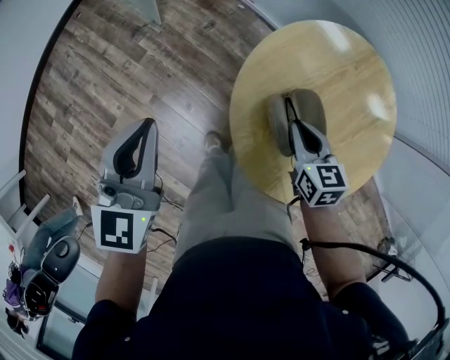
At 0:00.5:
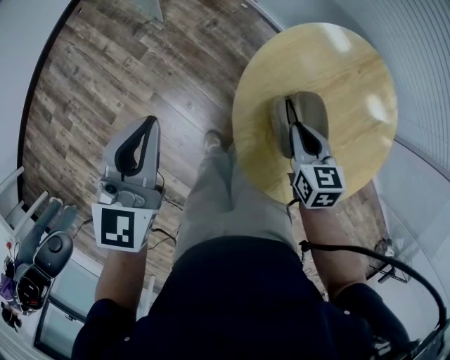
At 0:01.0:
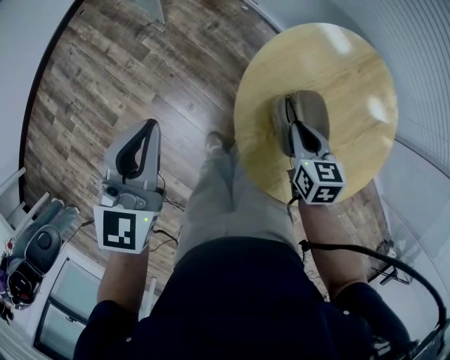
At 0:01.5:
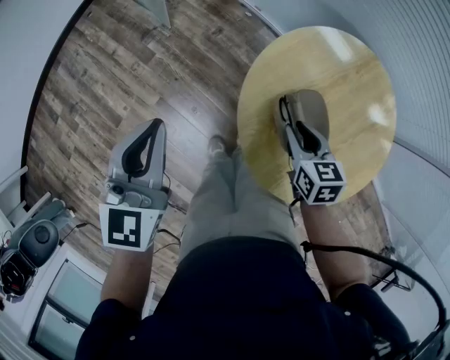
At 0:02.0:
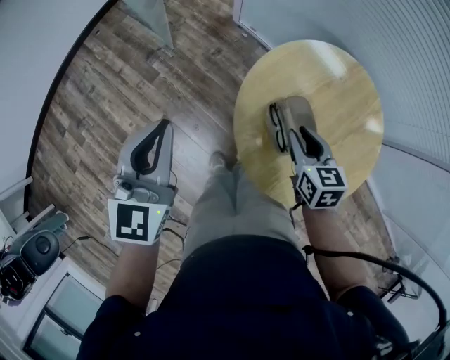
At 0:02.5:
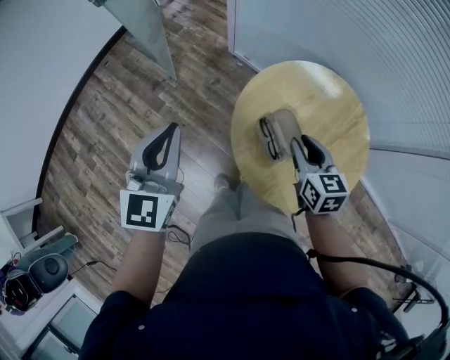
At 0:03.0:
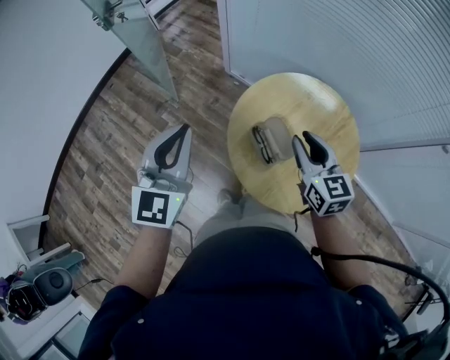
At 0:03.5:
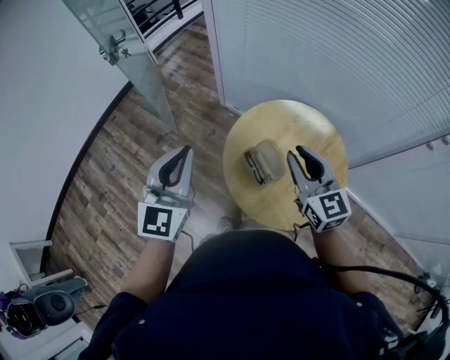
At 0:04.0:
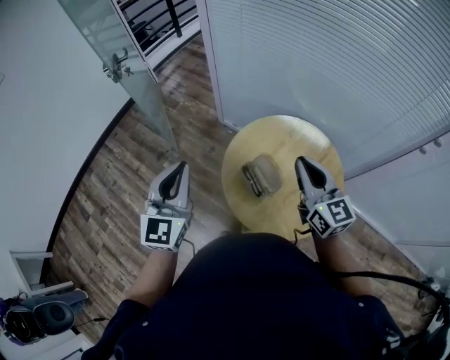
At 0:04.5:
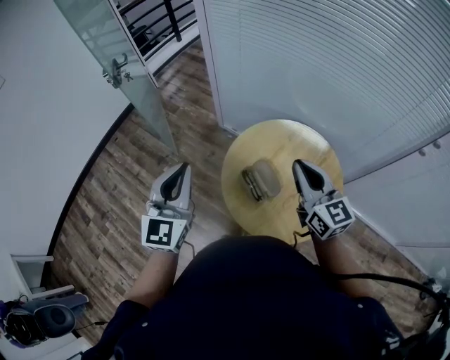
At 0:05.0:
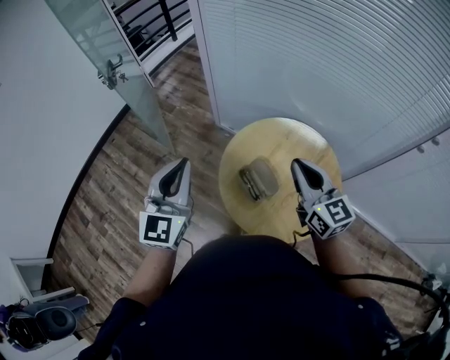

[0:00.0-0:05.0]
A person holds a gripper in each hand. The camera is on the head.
0:00.0 to 0:02.5: Both grippers move upward, approximately 15 cm. The right gripper opens.
0:02.5 to 0:05.0: The left gripper is displaced upward and to the right by about 15 cm; the right gripper goes about 20 cm upward, changes its angle by roughly 30 degrees, and closes.

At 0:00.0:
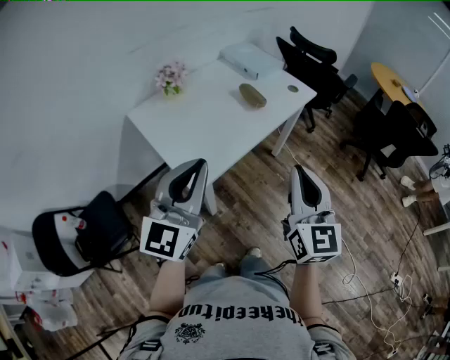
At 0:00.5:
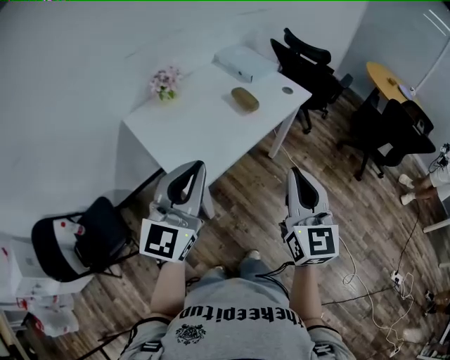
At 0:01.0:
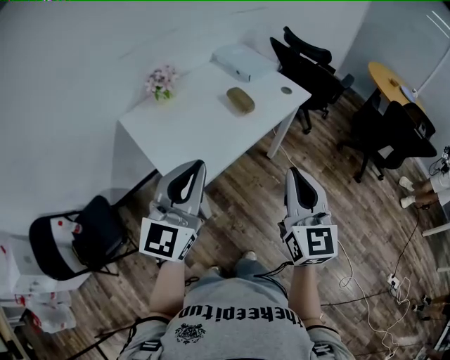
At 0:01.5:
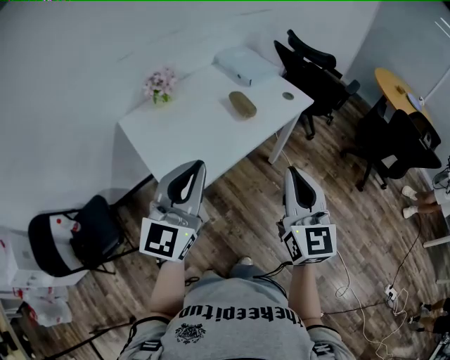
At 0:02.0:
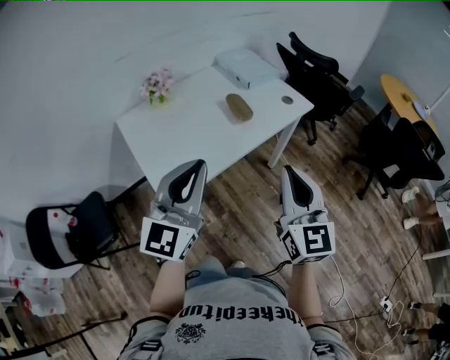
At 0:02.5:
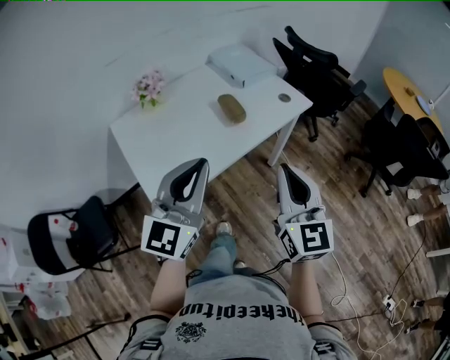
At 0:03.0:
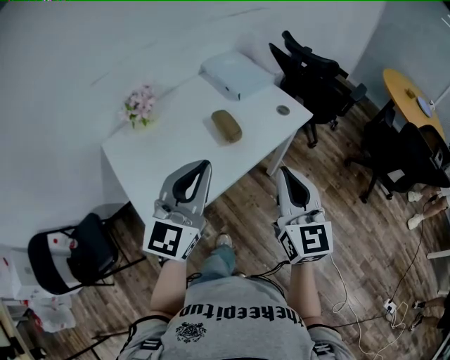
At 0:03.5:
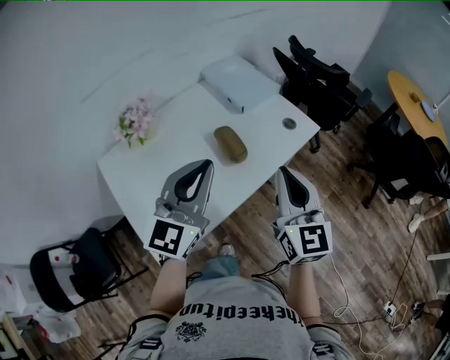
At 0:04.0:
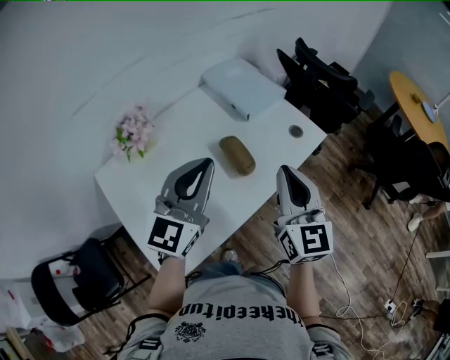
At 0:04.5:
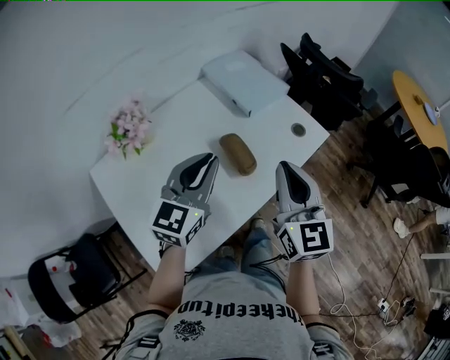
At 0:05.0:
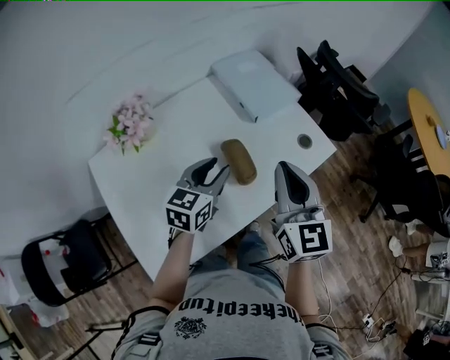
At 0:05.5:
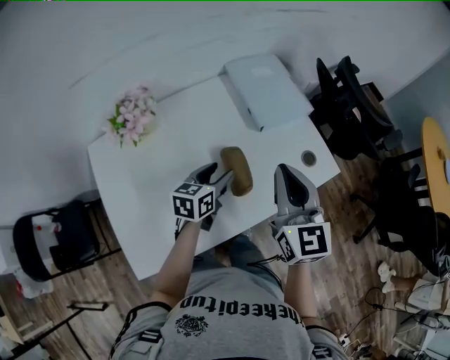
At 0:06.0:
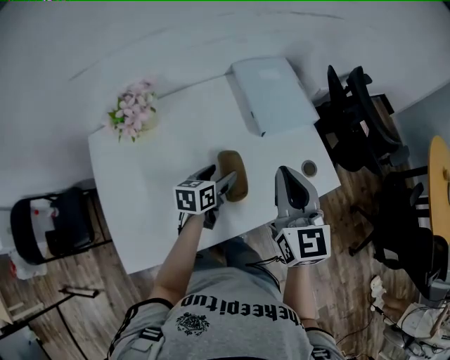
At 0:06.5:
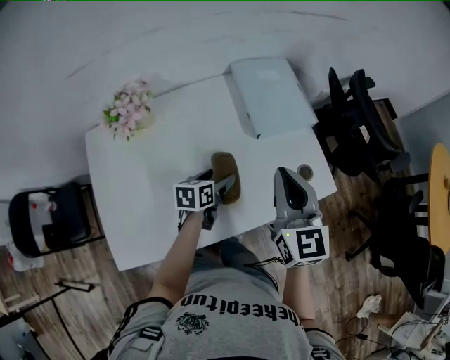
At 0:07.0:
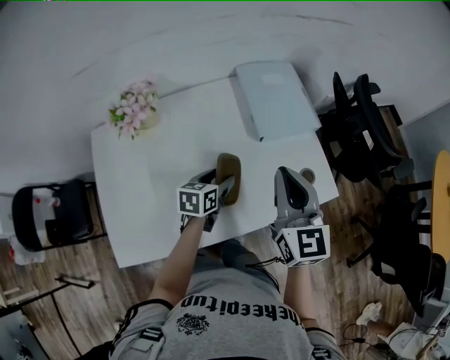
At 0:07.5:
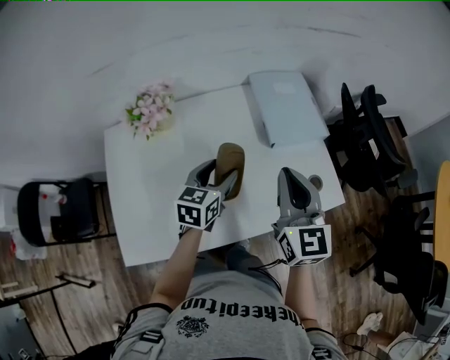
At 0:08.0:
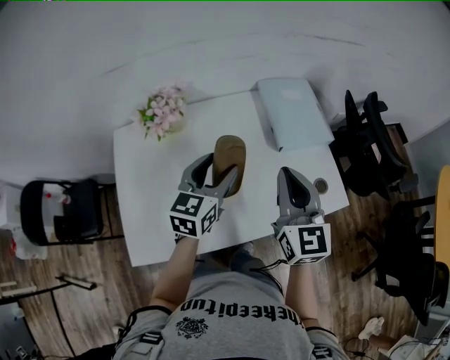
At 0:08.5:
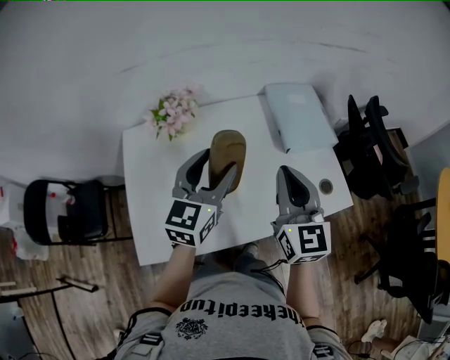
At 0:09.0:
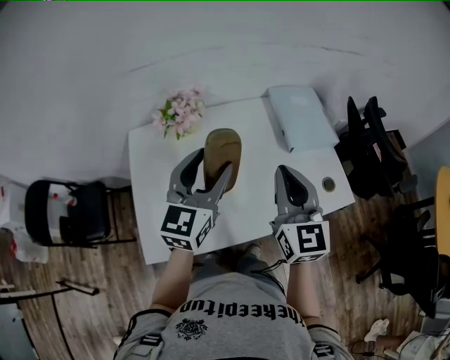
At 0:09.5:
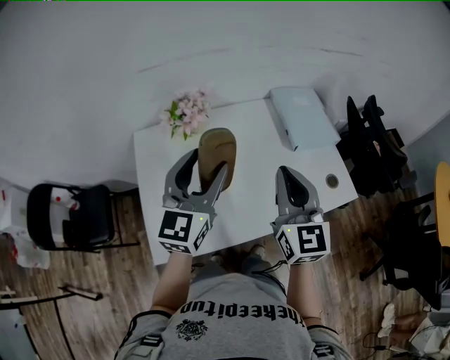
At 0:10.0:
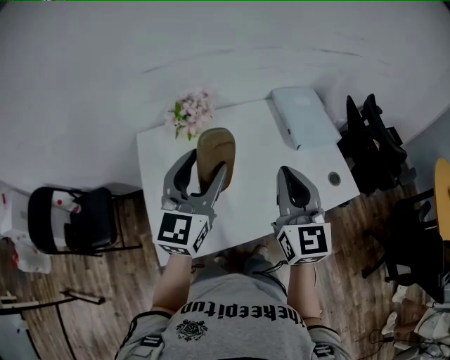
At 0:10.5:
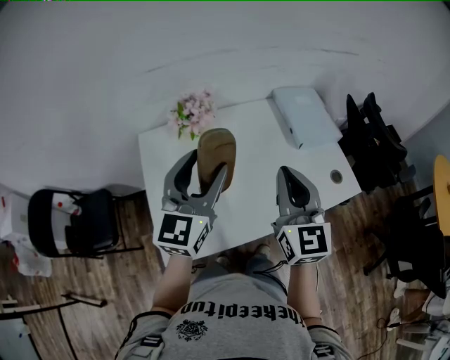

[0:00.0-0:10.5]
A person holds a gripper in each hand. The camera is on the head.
0:00.0 to 0:02.0: The right gripper goes approximately 10 cm forward and to the right, while the left gripper is displaced to the right and forward by approximately 15 cm.
0:02.0 to 0:04.0: The two grippers go roughly 30 cm forward.
0:04.0 to 0:06.5: The right gripper moves forward, some 15 cm, and turns by roughly 20 degrees, while the left gripper shifts approximately 35 cm downward and forward, angles its fingers downward, by approximately 40 degrees, and opens.
0:06.5 to 0:08.5: The left gripper travels upward by some 25 cm, and turns by some 50 degrees; the right gripper is displaced to the left by about 10 cm.
0:08.5 to 0:10.5: The grippers both shift to the left and backward by approximately 10 cm.

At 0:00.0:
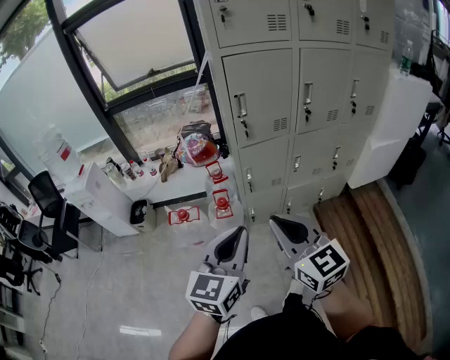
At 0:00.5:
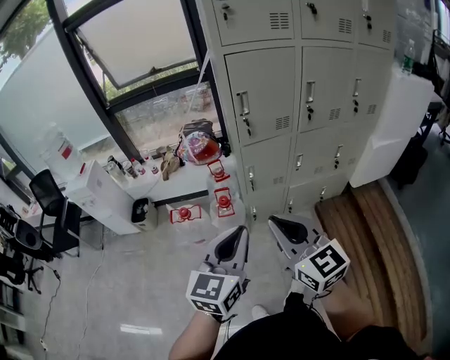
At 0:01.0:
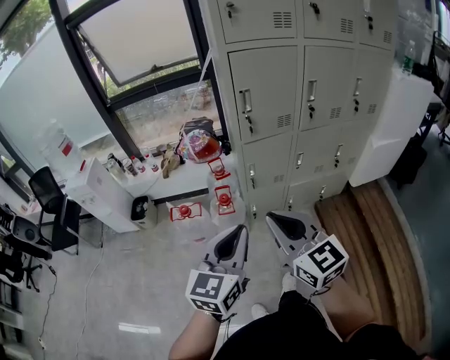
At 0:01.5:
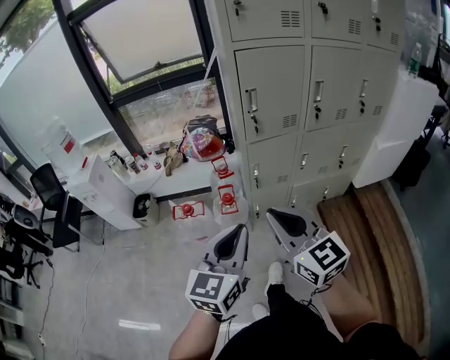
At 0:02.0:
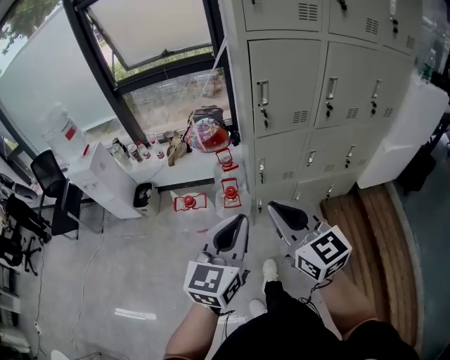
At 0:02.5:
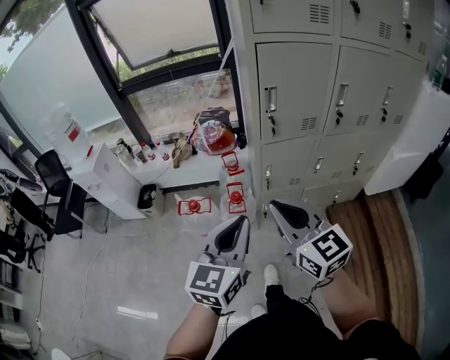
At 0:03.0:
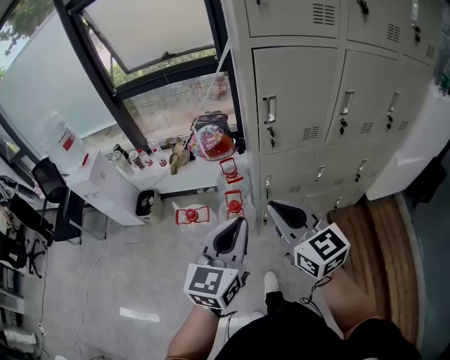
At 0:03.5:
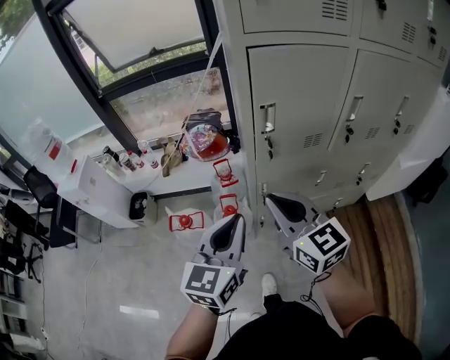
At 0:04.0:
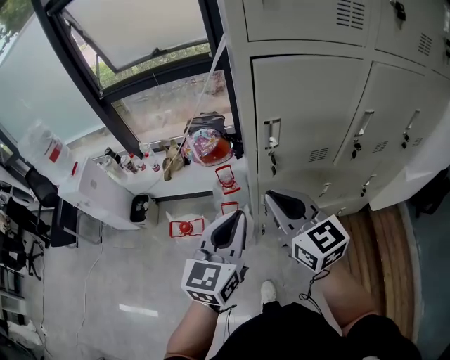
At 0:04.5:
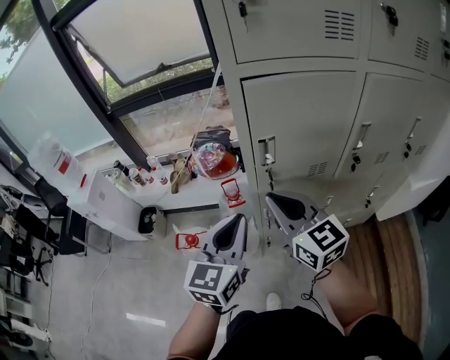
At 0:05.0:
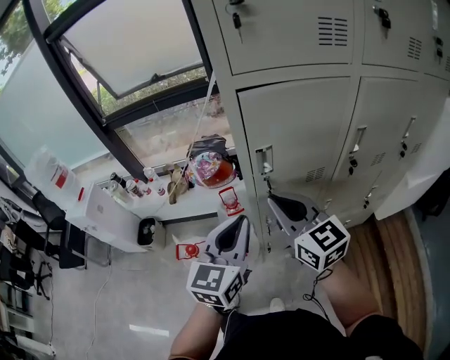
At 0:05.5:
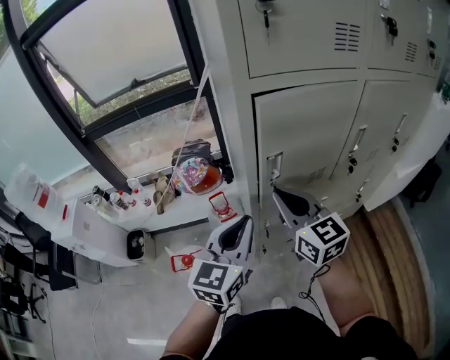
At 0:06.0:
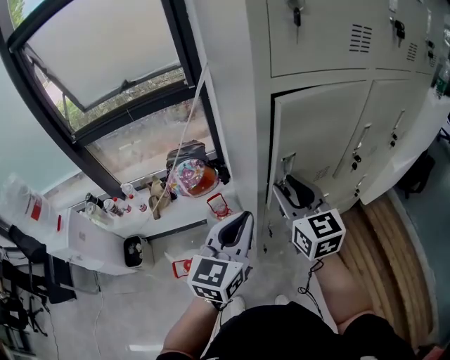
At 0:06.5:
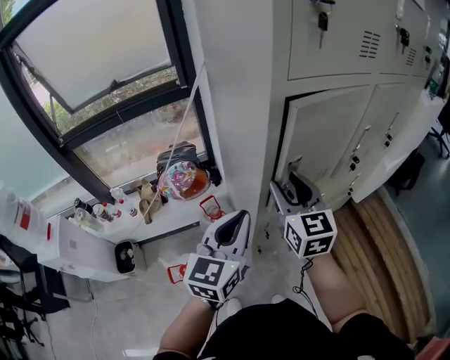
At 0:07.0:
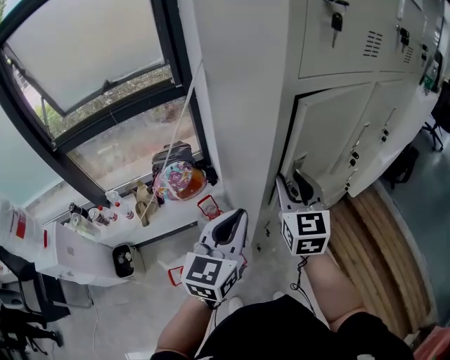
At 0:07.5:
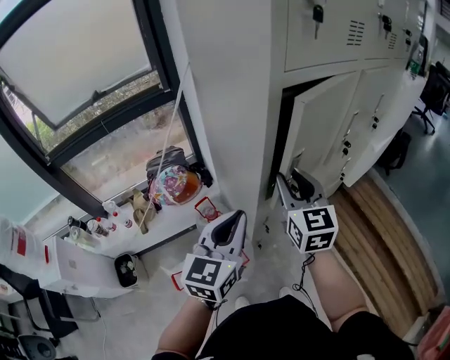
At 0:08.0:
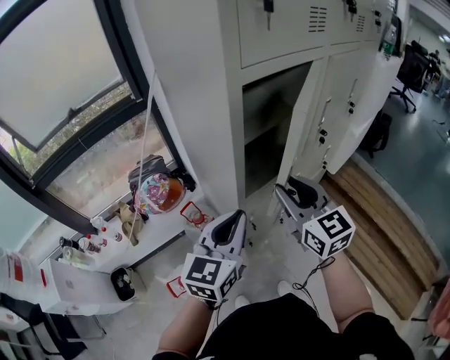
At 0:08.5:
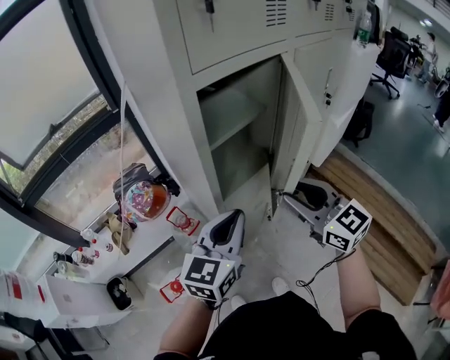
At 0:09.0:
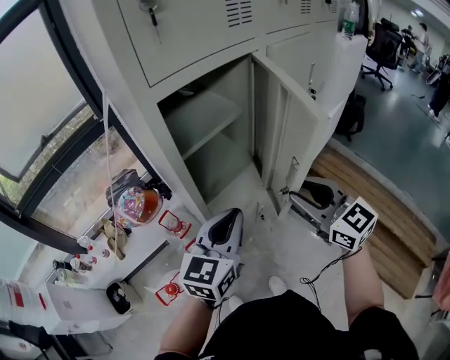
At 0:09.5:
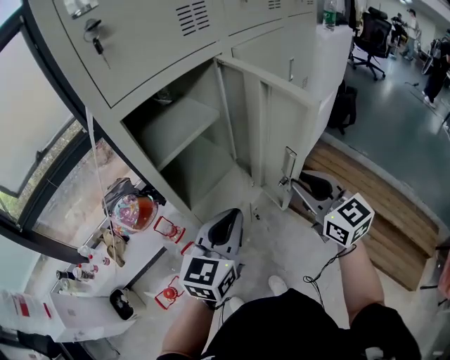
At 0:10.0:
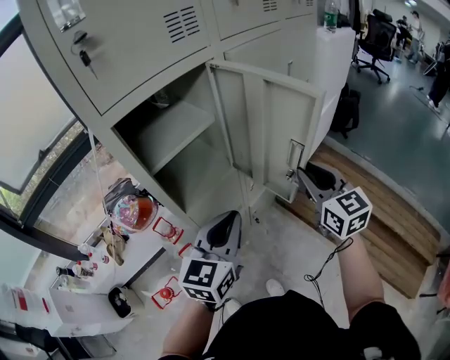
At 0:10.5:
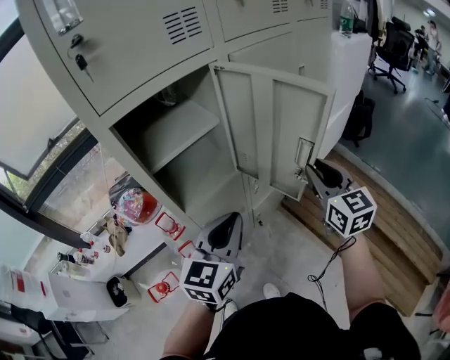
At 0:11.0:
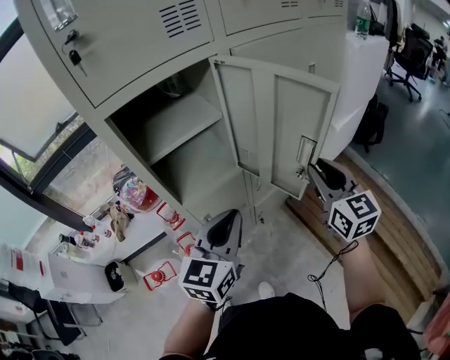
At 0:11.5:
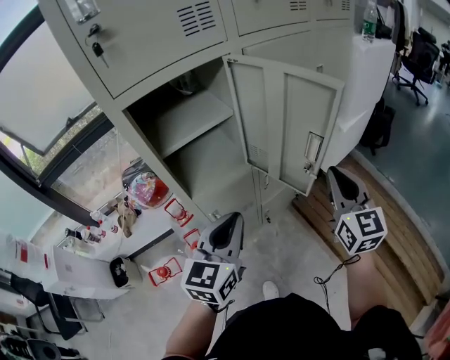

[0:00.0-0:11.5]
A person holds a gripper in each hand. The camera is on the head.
0:00.0 to 0:02.0: The right gripper moves about 5 cm.
0:02.0 to 0:04.0: The two grippers go approximately 25 cm forward.
0:04.0 to 0:06.0: The two grippers go some 10 cm forward. The right gripper swivels roughly 30 degrees, and opens its fingers.
0:06.0 to 0:07.5: The right gripper swivels some 20 degrees.
0:07.5 to 0:09.5: Both grippers travel together to the right, some 25 cm.
0:09.5 to 0:11.5: The right gripper is displaced to the right by some 10 cm.
